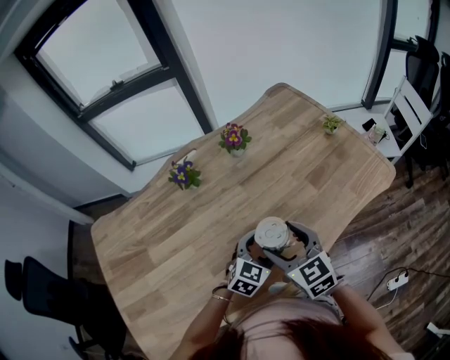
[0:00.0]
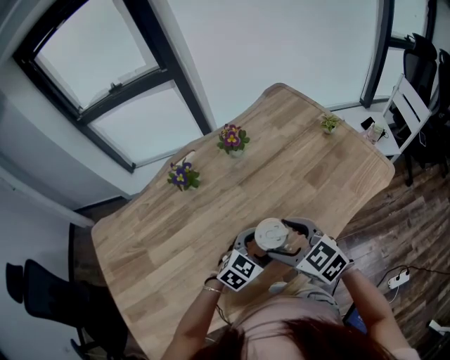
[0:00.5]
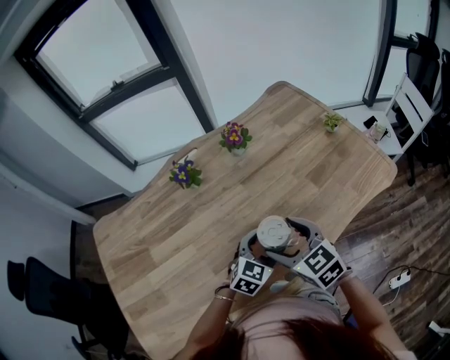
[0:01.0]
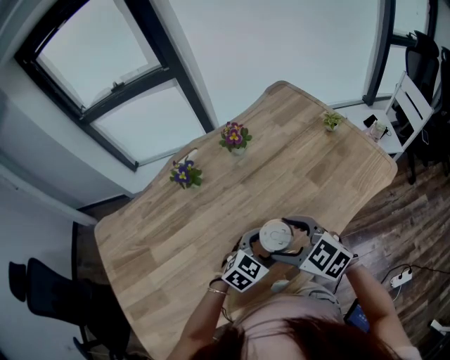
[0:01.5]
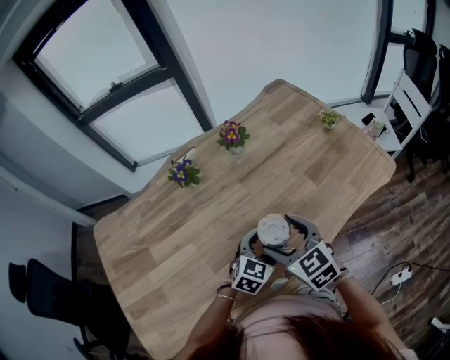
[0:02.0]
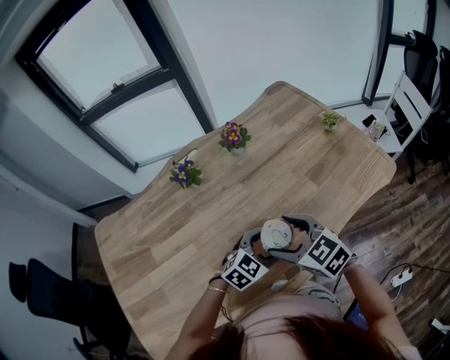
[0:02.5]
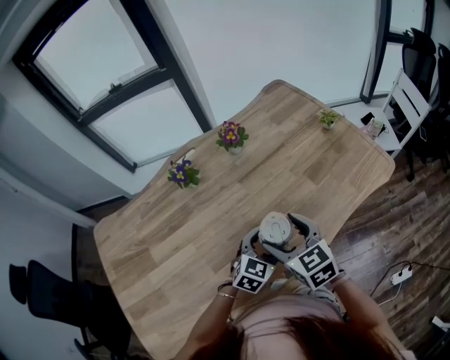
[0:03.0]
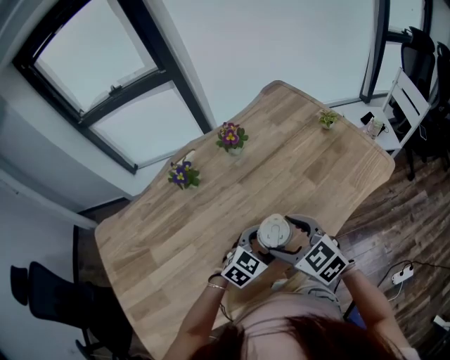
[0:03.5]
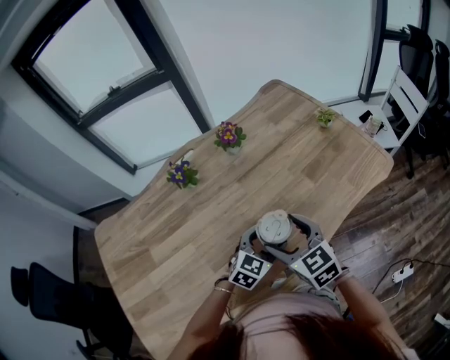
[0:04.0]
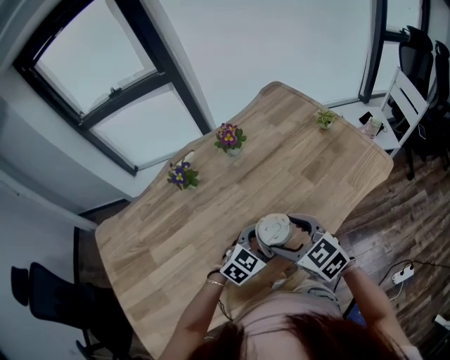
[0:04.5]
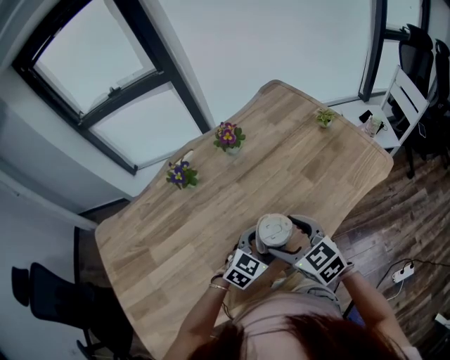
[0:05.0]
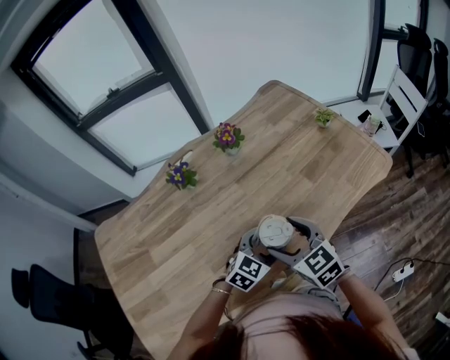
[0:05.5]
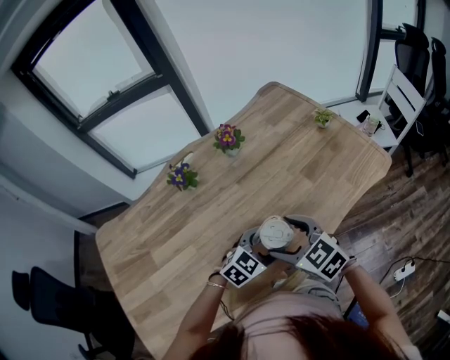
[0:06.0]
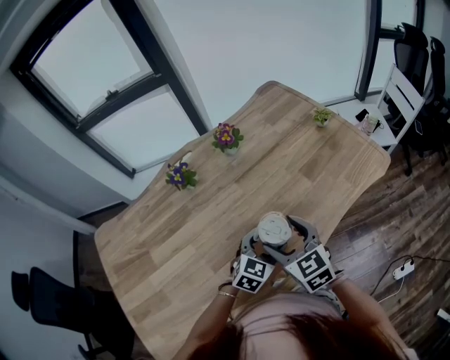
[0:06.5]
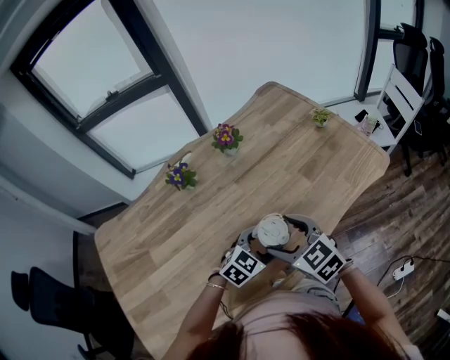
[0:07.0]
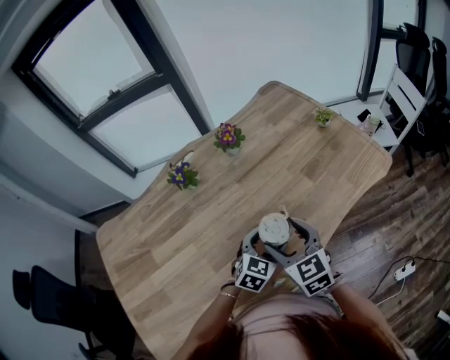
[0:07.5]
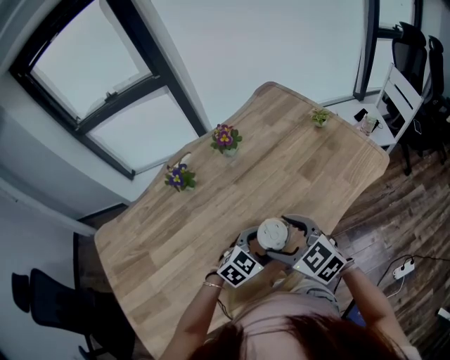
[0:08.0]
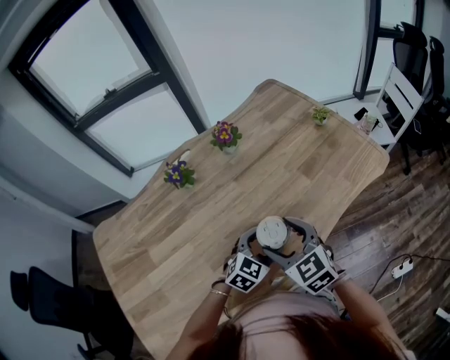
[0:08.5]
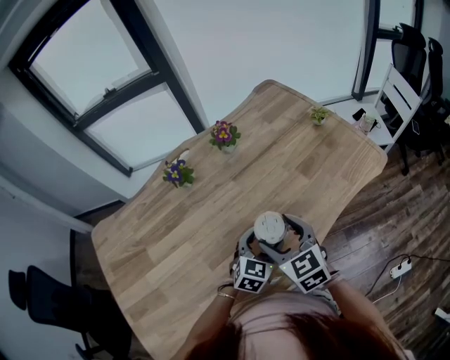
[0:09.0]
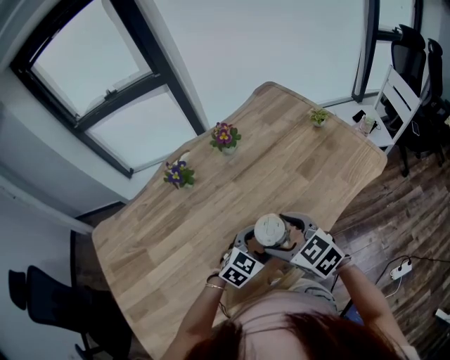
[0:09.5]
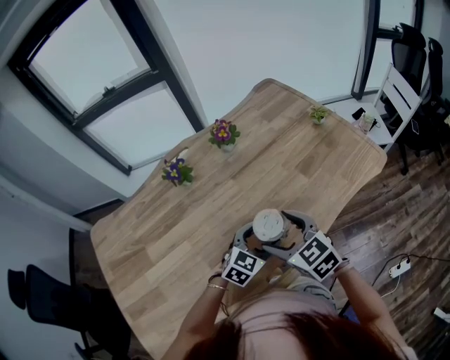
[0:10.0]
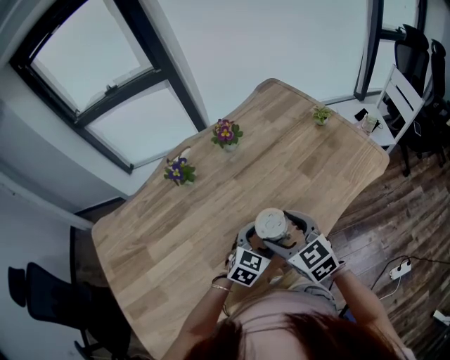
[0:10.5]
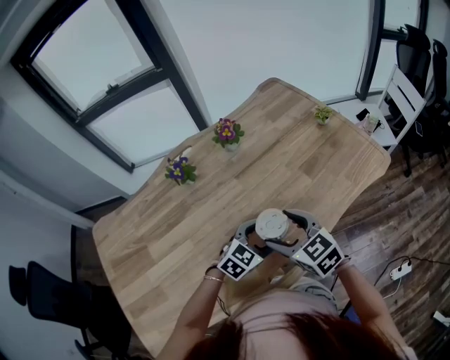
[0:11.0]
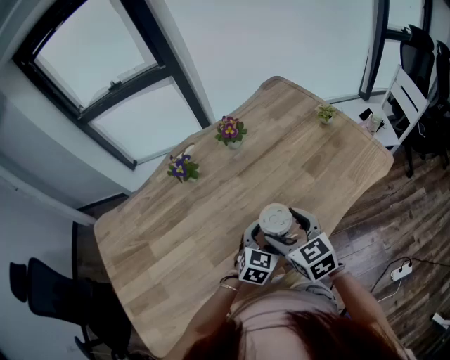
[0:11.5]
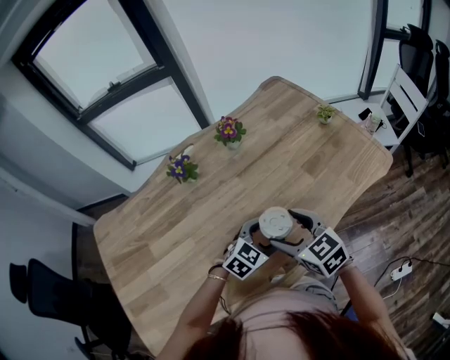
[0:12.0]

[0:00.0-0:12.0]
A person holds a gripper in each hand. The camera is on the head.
0:02.0 to 0:04.0: The grippers move only a little.
0:04.0 to 0:06.0: The grippers make only small movements.
0:10.0 to 0:12.0: The grippers stay close to where they were, moving slightly.

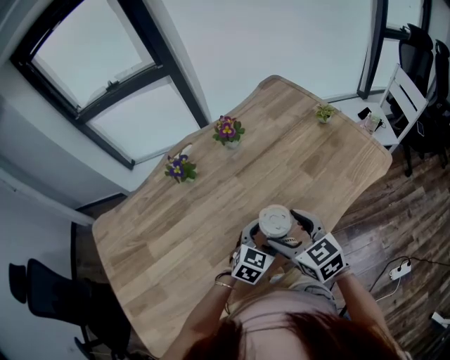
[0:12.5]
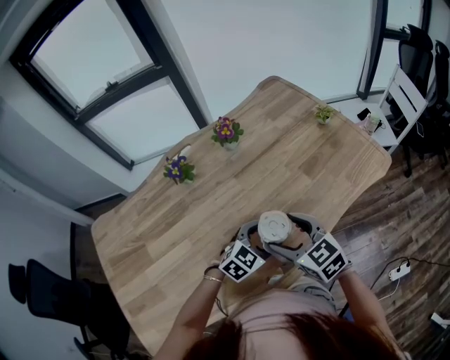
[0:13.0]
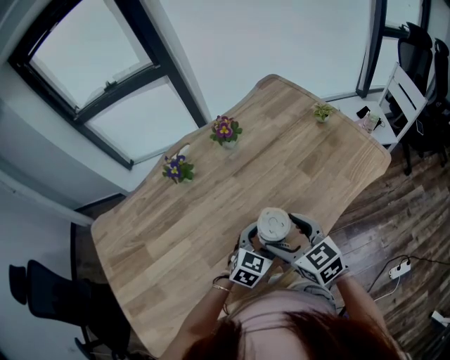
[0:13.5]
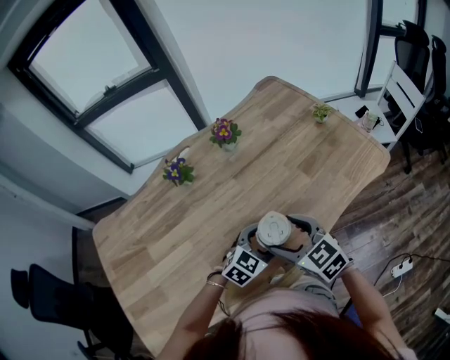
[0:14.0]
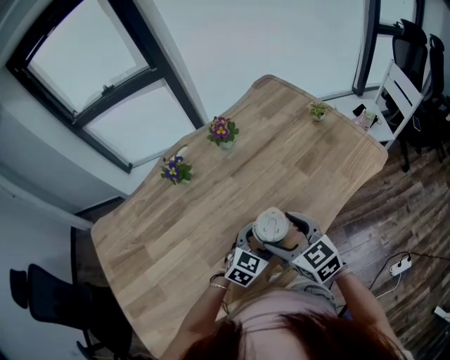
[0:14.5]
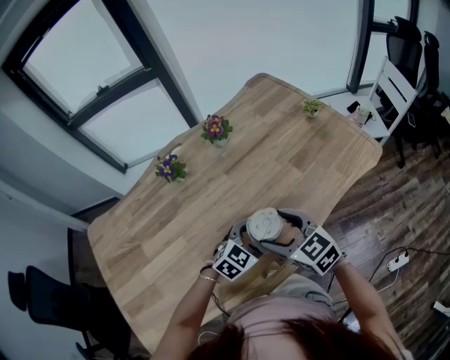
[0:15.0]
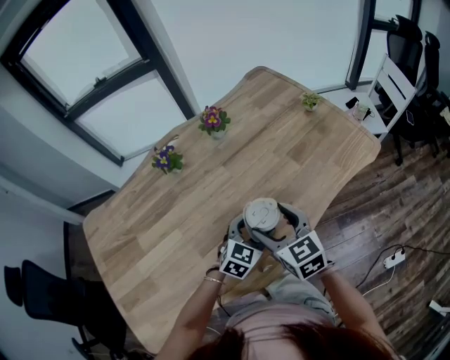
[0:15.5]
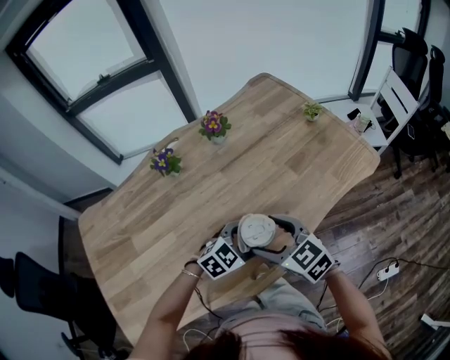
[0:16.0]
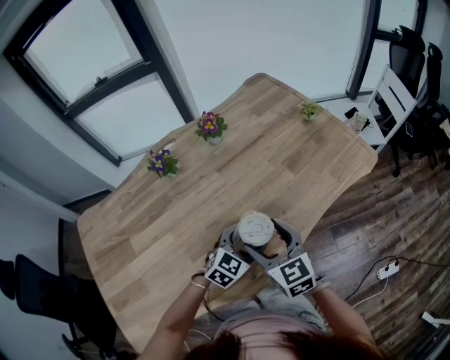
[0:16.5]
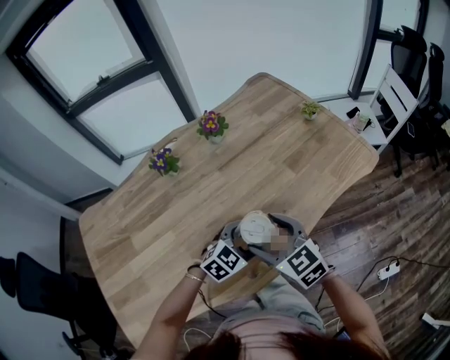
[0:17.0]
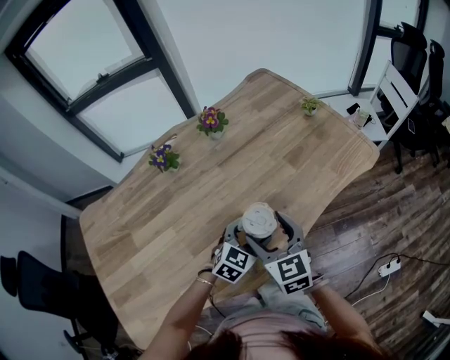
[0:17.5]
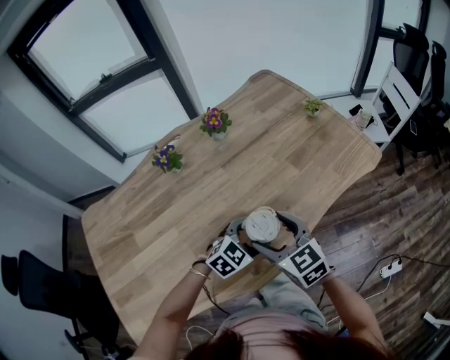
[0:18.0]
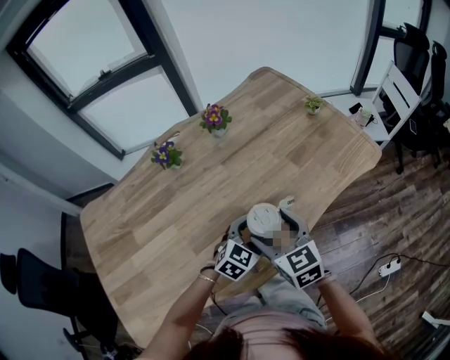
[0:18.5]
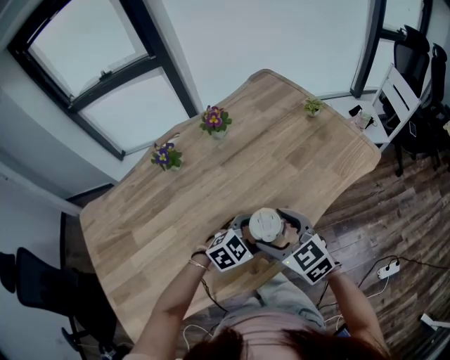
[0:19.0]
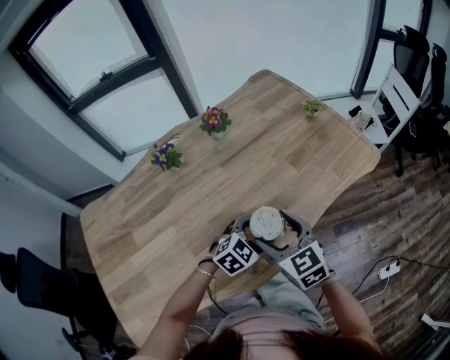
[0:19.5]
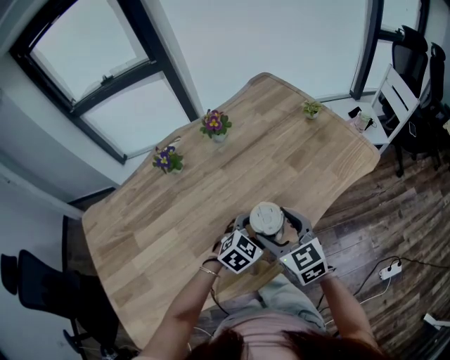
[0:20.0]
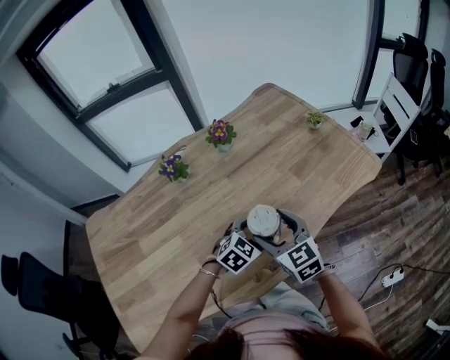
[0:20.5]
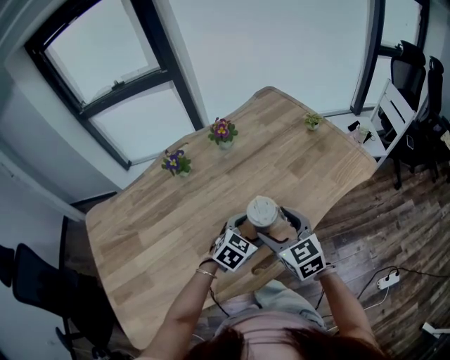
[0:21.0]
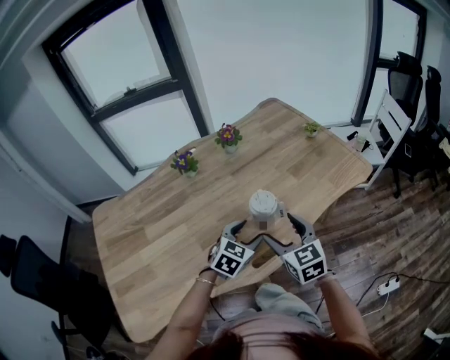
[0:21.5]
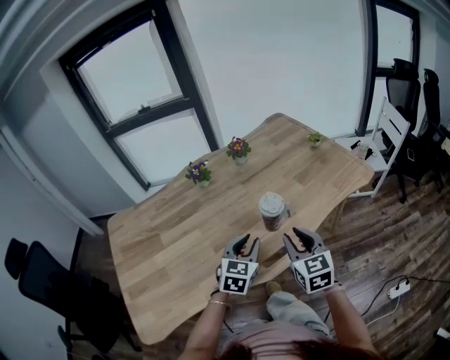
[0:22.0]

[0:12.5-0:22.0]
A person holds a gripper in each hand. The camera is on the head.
0:12.5 to 0:14.5: The grippers make only small movements.
0:14.5 to 0:18.0: The grippers move only a little.
0:18.0 to 0:20.0: The grippers move only a little.
0:20.0 to 0:22.0: The left gripper goes about 15 cm upward, backward and to the left, changes its angle by approximately 40 degrees, and closes. The right gripper is displaced backward by some 10 cm, and closes its fingers.

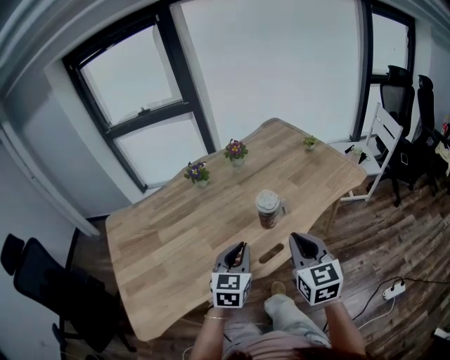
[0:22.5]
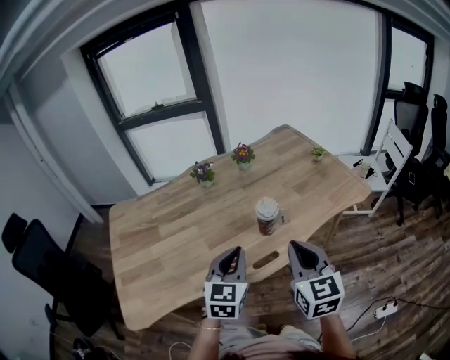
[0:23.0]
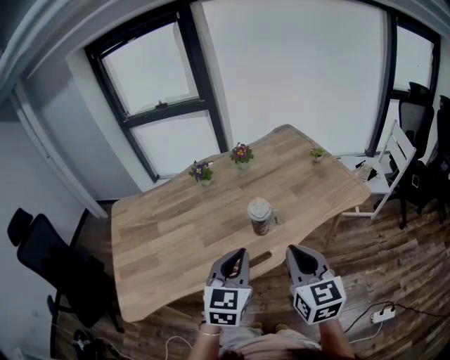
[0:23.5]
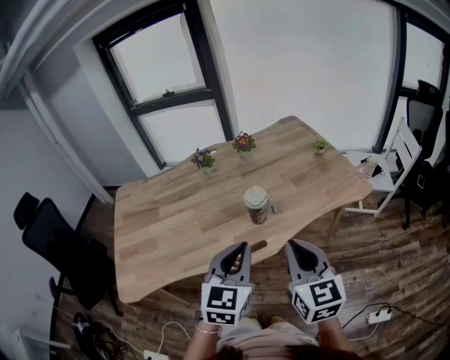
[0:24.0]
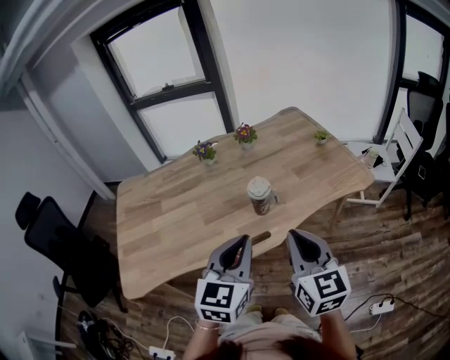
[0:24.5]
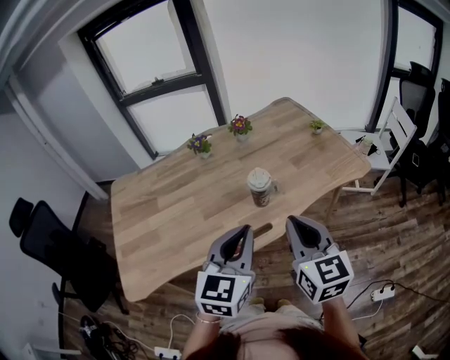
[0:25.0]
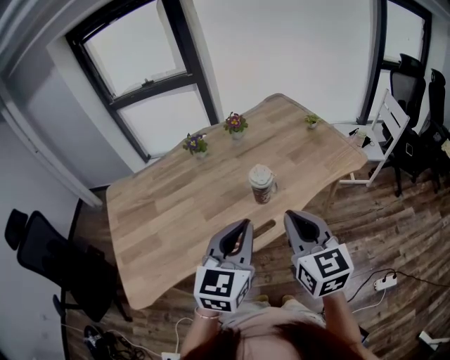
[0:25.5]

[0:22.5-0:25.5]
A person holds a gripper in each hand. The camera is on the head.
0:22.5 to 0:24.0: The right gripper heads to the right and upward, covering some 10 cm; the left gripper is displaced upward, to the right and backward by some 15 cm.
0:24.0 to 0:25.5: The right gripper moves to the left, approximately 5 cm. The left gripper moves about 5 cm.

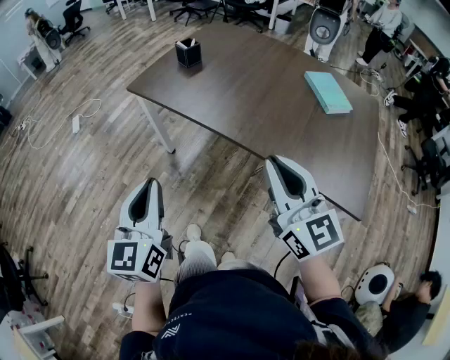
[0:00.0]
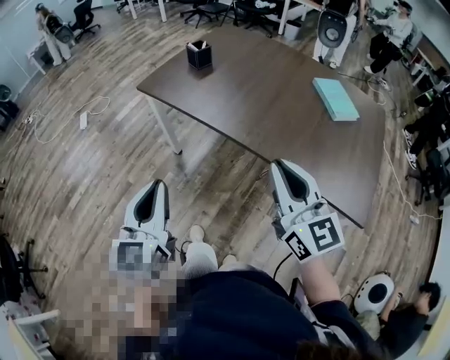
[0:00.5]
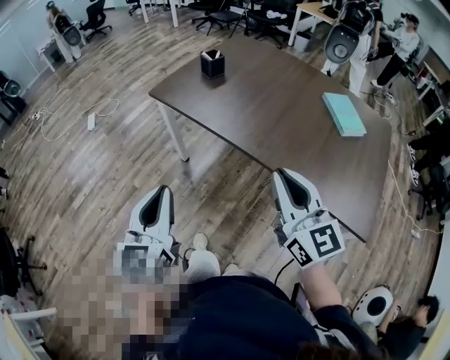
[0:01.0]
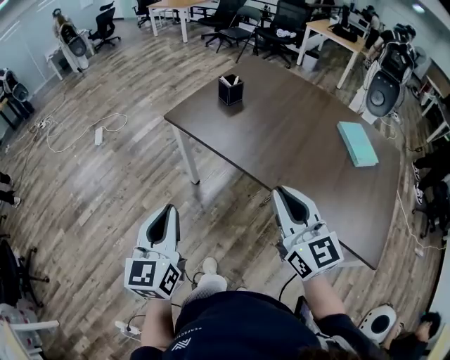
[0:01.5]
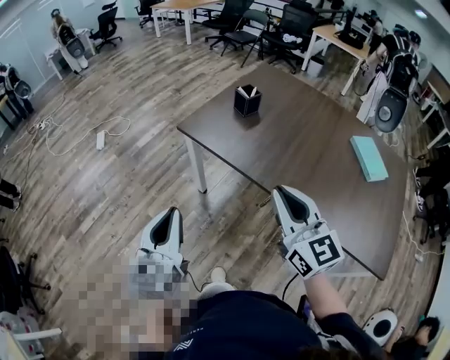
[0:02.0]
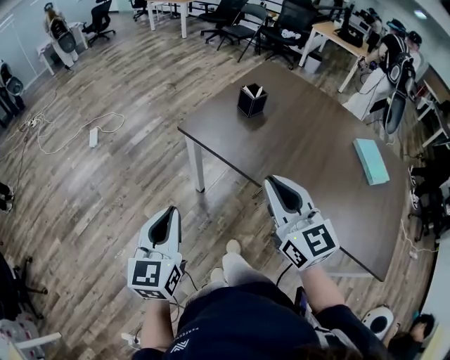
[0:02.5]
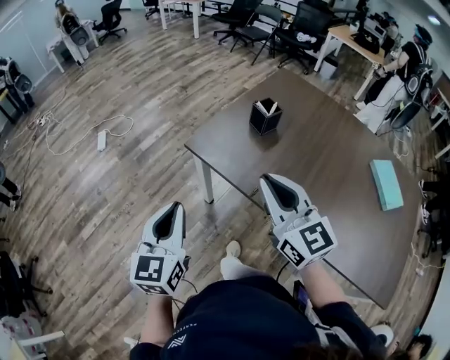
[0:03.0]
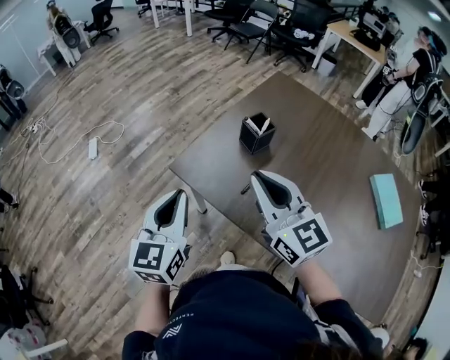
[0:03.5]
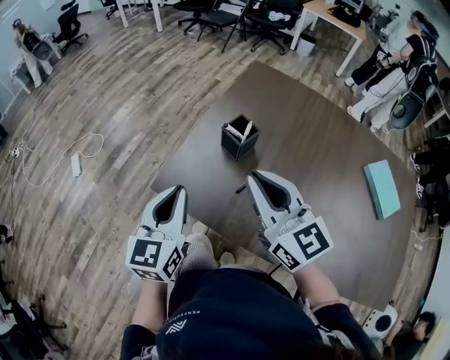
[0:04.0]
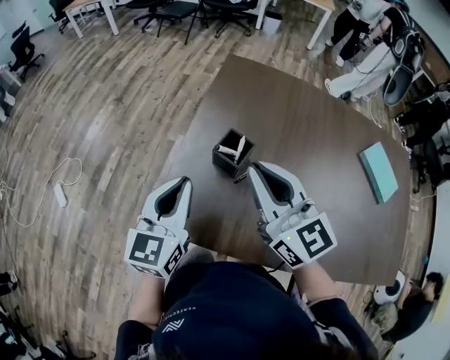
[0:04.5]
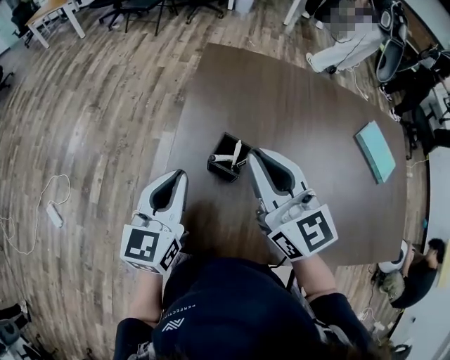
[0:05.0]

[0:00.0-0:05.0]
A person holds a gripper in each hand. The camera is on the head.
0:00.0 to 0:02.5: Both grippers move forward and to the left, some 25 cm.
0:02.5 to 0:05.0: The pair of grippers is taken about 50 cm. The left gripper turns by about 40 degrees. Meanwhile the right gripper turns by roughly 20 degrees.
